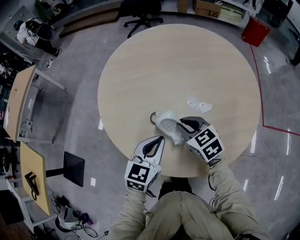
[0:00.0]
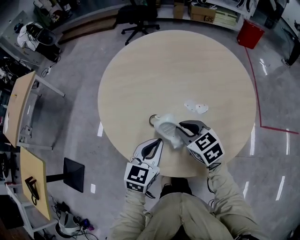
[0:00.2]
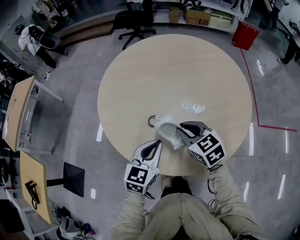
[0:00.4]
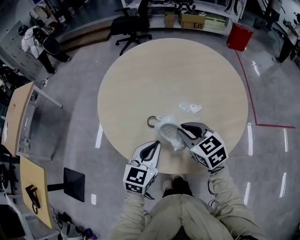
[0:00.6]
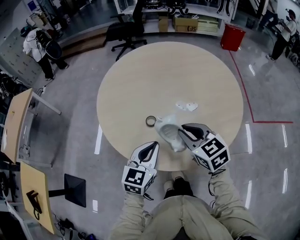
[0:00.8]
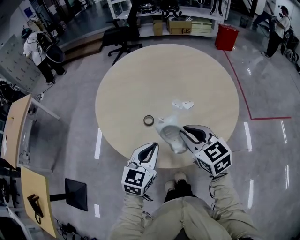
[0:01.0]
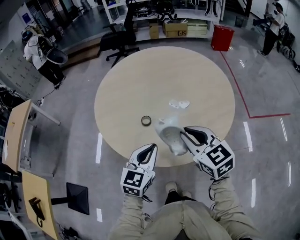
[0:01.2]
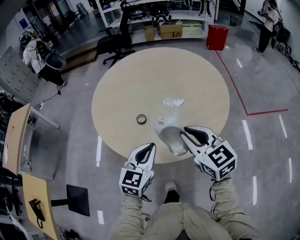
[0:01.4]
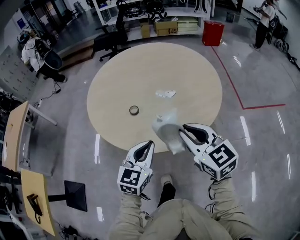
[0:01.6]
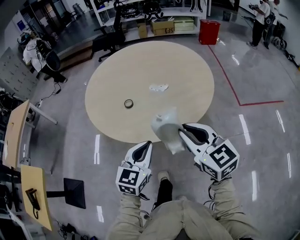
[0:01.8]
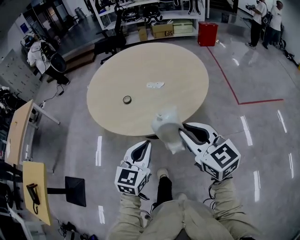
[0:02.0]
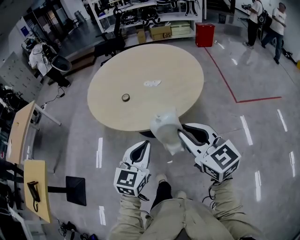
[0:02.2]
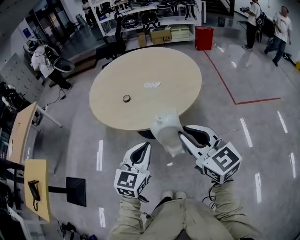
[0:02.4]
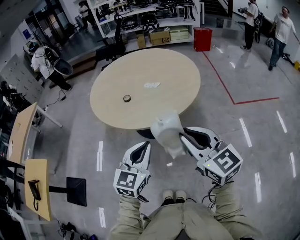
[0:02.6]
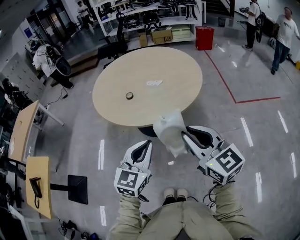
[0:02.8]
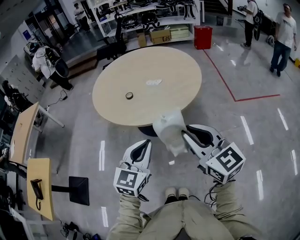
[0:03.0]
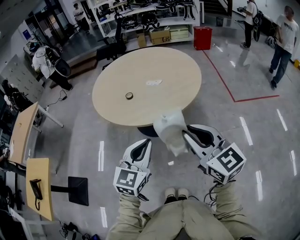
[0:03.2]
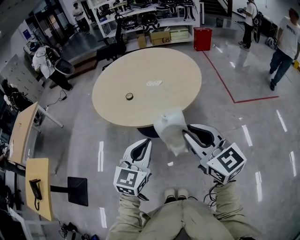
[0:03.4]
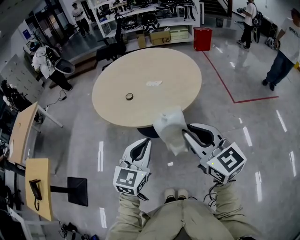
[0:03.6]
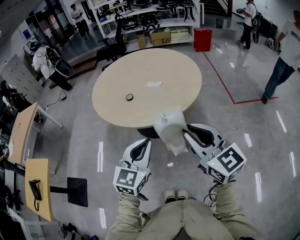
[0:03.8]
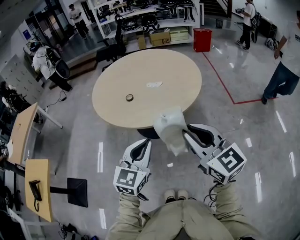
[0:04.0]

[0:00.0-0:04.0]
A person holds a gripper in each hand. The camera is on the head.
0.0 to 1.4 s: The right gripper shifts some 25 cm backward and upward, and turns by about 30 degrees. Meanwhile the left gripper heads backward and upward, covering roughly 15 cm.
1.4 to 2.6 s: The grippers both shift backward by approximately 25 cm.
2.6 to 4.0 s: There are only small adjustments of the grippers.

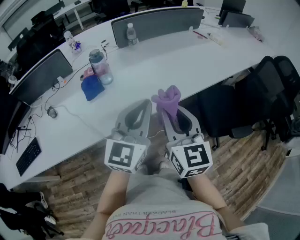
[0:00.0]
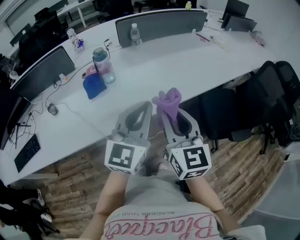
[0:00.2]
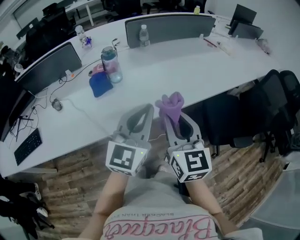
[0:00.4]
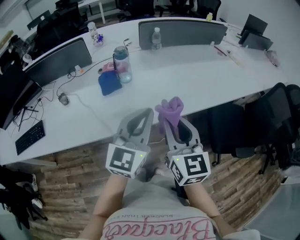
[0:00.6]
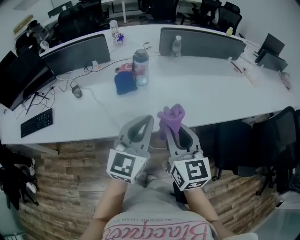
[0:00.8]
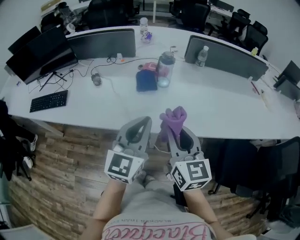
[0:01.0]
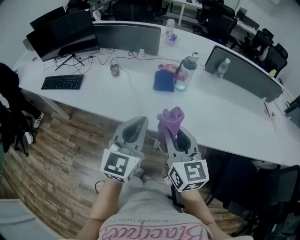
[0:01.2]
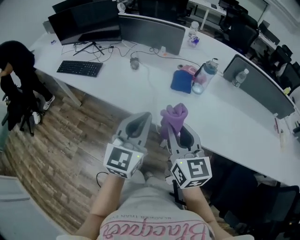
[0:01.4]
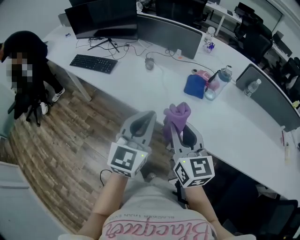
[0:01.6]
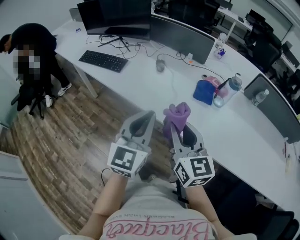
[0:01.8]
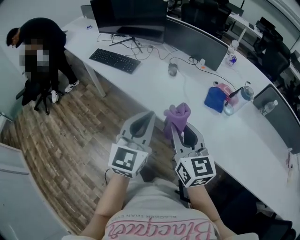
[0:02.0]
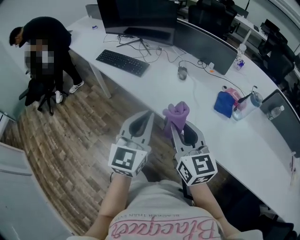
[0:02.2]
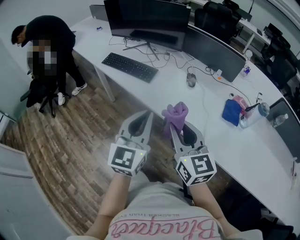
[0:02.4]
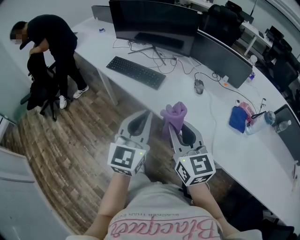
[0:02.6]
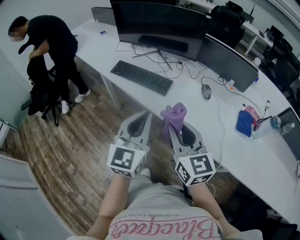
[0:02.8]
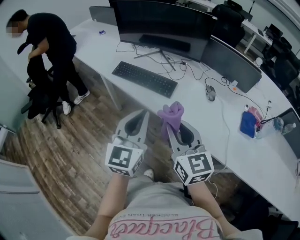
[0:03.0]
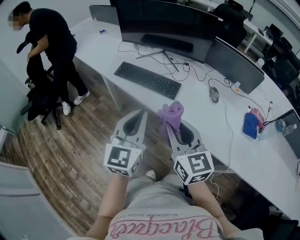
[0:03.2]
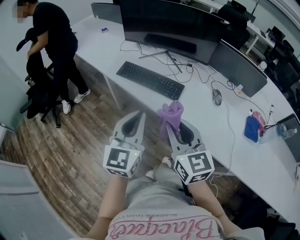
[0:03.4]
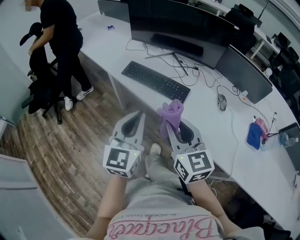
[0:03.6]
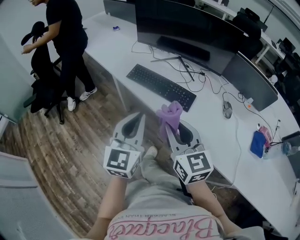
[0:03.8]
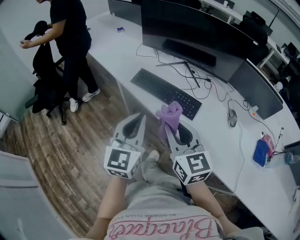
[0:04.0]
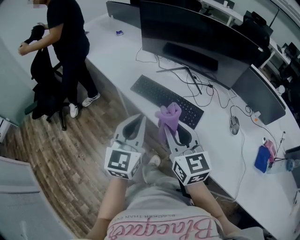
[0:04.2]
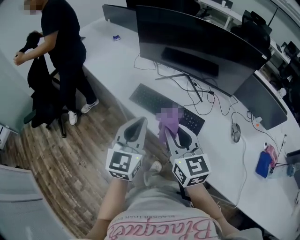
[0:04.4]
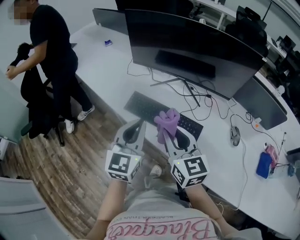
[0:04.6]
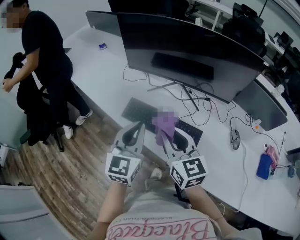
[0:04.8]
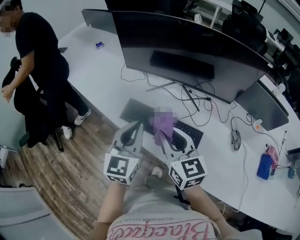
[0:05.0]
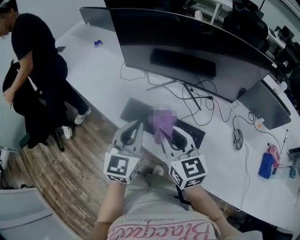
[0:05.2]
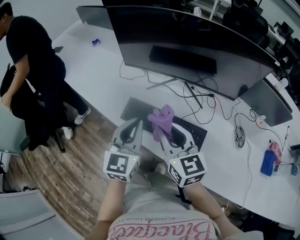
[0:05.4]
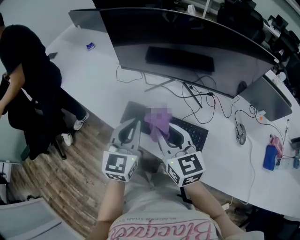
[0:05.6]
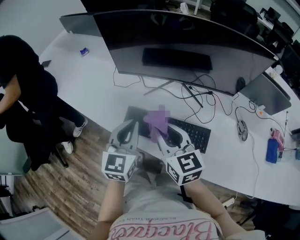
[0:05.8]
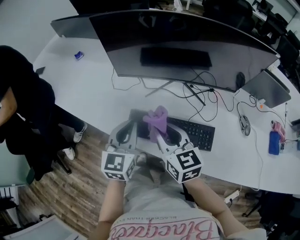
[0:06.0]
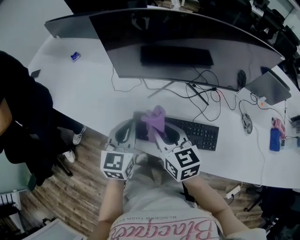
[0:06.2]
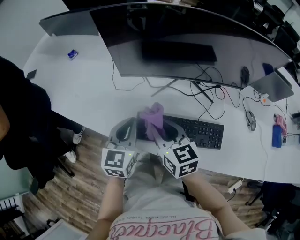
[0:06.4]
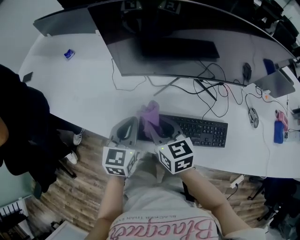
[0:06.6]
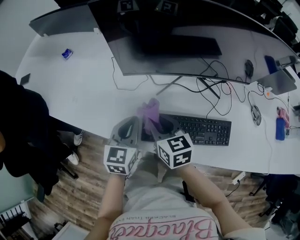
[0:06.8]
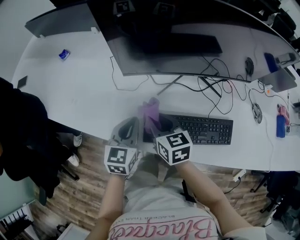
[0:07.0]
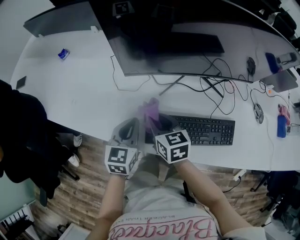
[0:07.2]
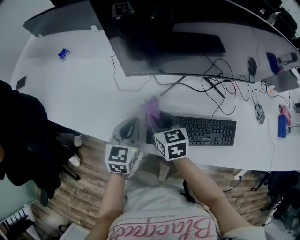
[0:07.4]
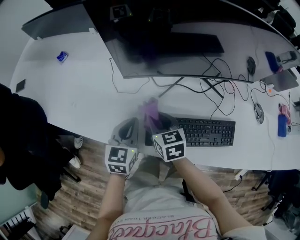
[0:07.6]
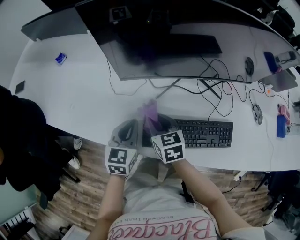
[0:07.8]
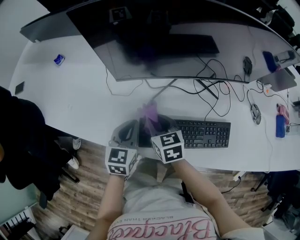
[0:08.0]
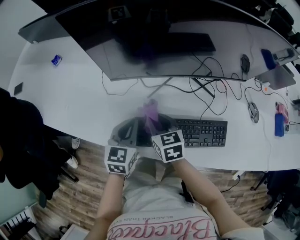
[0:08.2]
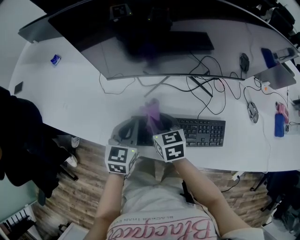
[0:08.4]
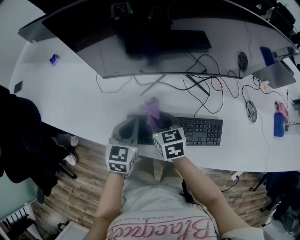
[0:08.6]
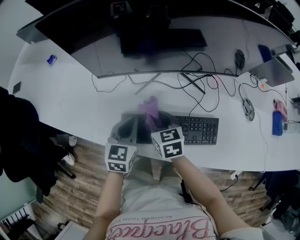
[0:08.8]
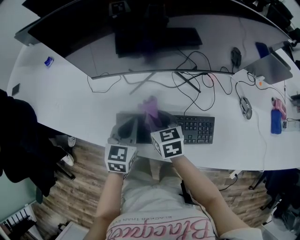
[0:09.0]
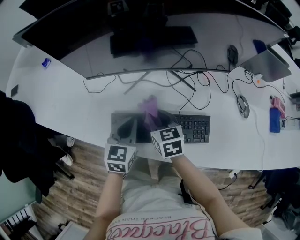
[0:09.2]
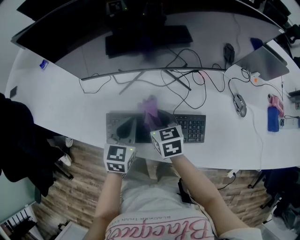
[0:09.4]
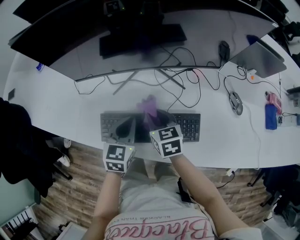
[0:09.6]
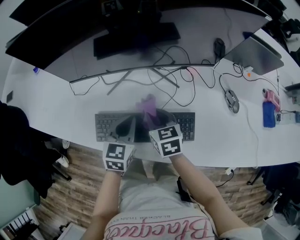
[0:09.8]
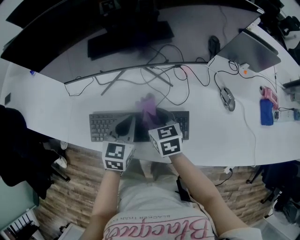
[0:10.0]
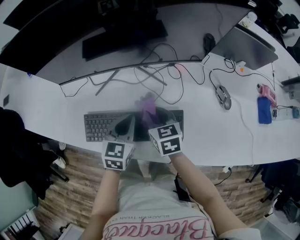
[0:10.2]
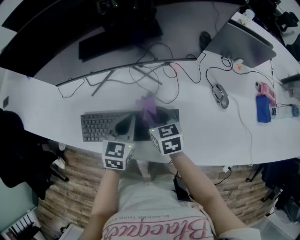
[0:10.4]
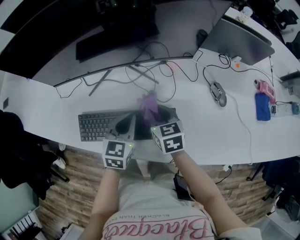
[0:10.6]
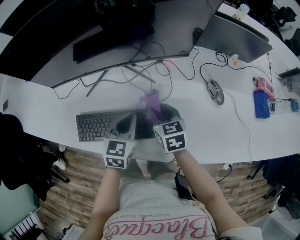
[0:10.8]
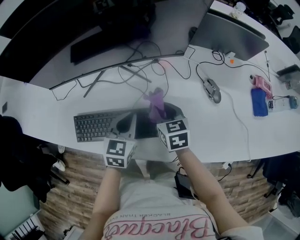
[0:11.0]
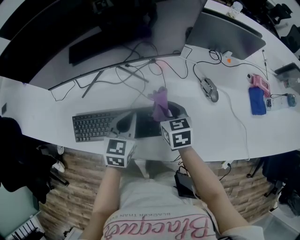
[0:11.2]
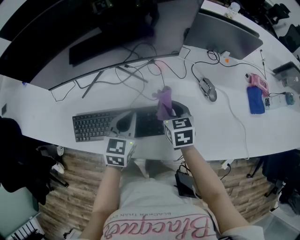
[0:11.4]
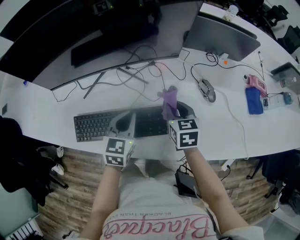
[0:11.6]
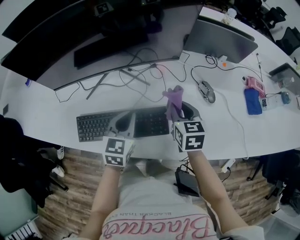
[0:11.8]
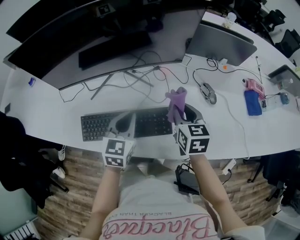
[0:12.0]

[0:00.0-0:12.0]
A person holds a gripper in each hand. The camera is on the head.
0.0 to 1.6 s: The left gripper shifts by approximately 30 cm, and changes its angle by roughly 50 degrees. The right gripper shifts by some 30 cm, and changes its angle by some 50 degrees.
1.6 to 3.0 s: The two grippers travel together, to the left and forward, roughly 40 cm.
3.0 to 4.4 s: The two grippers go roughly 25 cm forward and to the left.
4.4 to 6.0 s: The grippers both shift forward by roughly 20 cm.
6.0 to 7.6 s: Both grippers travel together downward, forward and to the left, roughly 20 cm. The right gripper swivels about 20 degrees.
7.6 to 9.0 s: The grippers both shift to the right by roughly 15 cm.
9.0 to 10.4 s: Both grippers move to the right, roughly 15 cm.
10.4 to 12.0 s: The left gripper heads upward, covering roughly 5 cm; the right gripper goes approximately 15 cm to the right and upward.

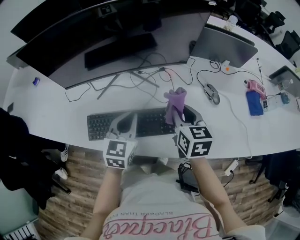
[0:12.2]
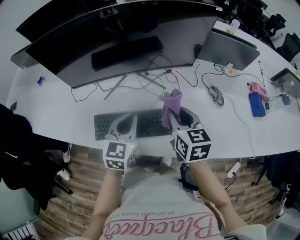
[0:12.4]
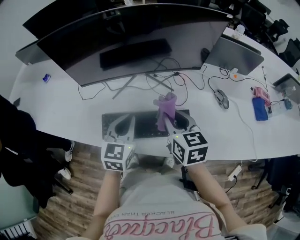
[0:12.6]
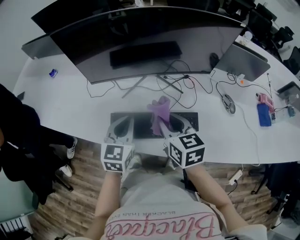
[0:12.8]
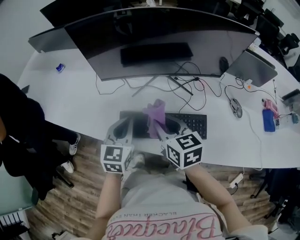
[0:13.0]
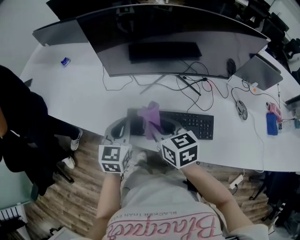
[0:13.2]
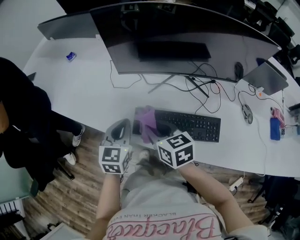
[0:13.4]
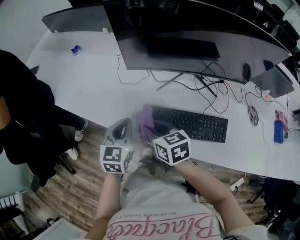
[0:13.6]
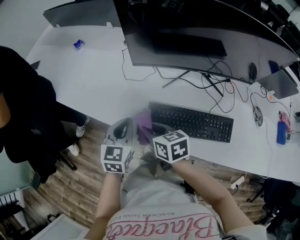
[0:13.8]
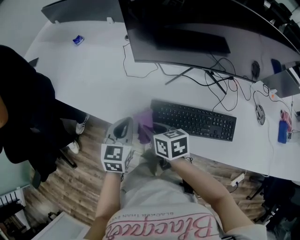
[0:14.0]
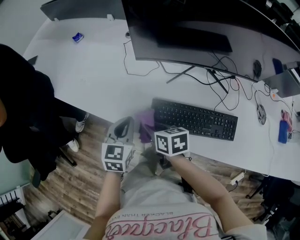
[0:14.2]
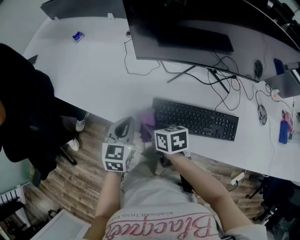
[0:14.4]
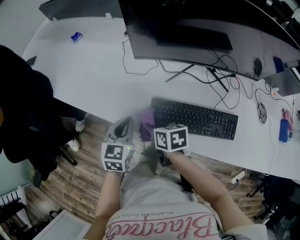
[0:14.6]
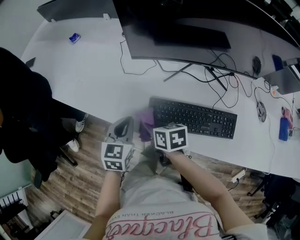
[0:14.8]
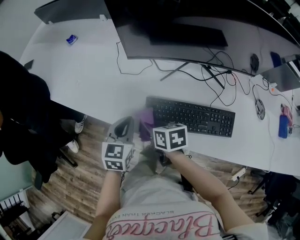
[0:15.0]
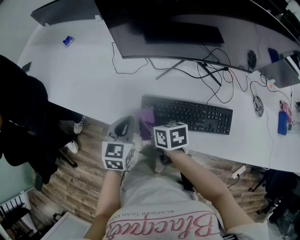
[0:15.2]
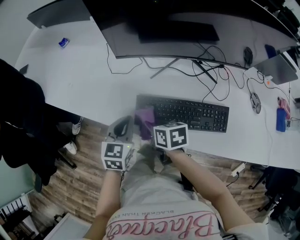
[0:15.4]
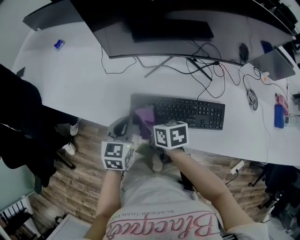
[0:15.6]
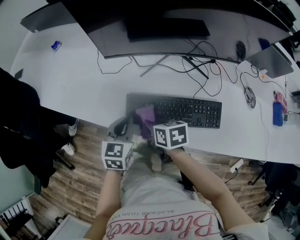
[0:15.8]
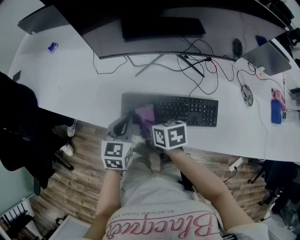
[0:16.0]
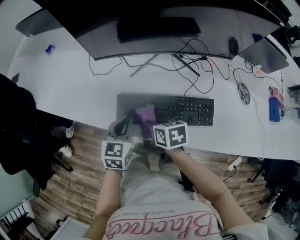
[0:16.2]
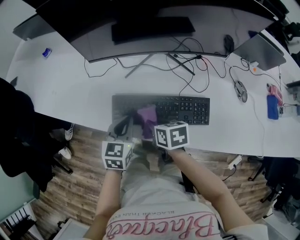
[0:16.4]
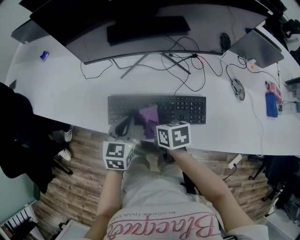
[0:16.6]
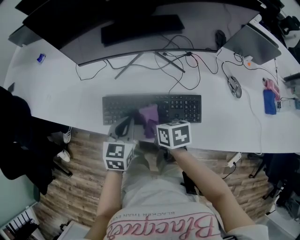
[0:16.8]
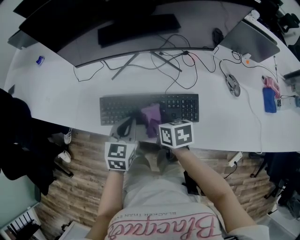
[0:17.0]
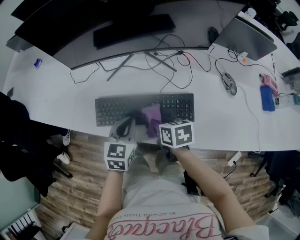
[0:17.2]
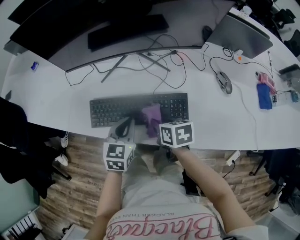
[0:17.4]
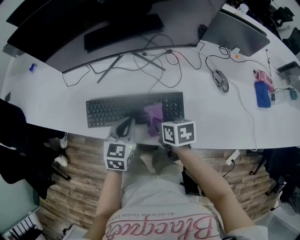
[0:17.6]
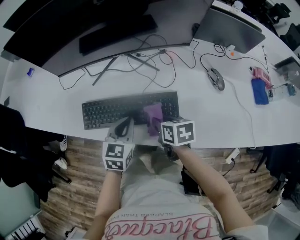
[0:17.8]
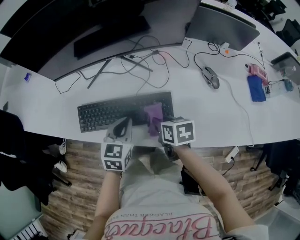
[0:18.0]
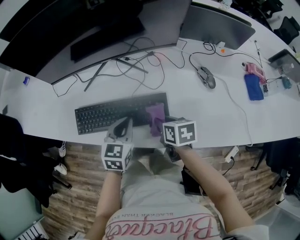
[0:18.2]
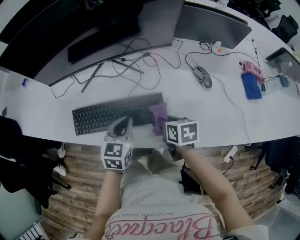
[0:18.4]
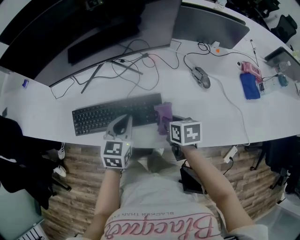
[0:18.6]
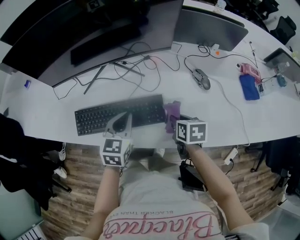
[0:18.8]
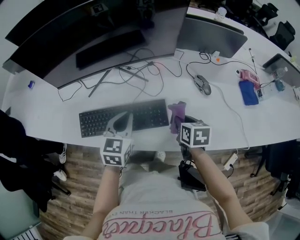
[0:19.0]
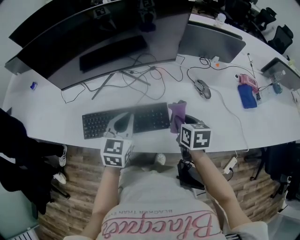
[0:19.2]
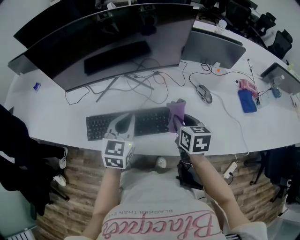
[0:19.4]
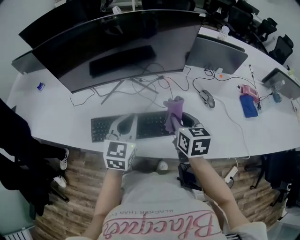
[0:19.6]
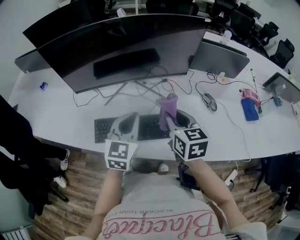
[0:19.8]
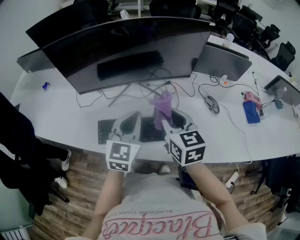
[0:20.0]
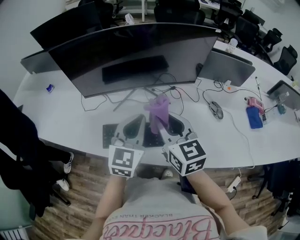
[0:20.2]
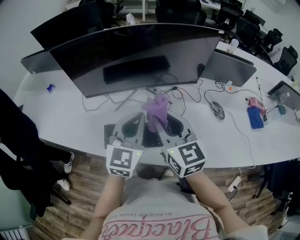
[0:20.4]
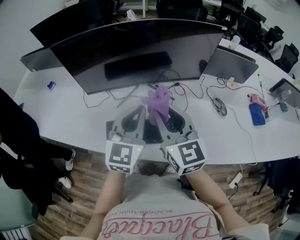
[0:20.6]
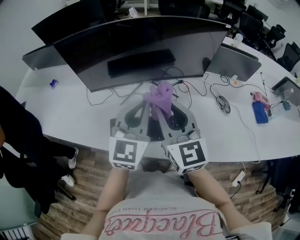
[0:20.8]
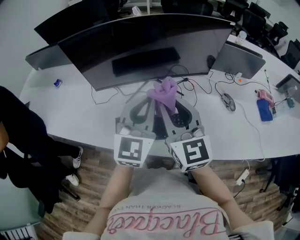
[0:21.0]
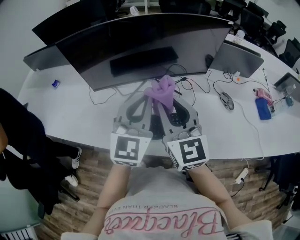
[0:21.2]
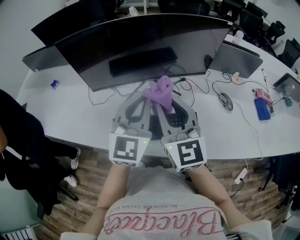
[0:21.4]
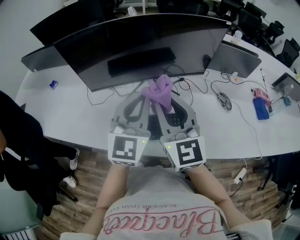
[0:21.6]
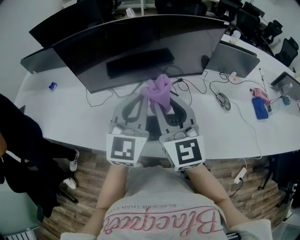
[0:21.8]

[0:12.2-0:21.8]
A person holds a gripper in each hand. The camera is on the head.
12.2 to 13.8 s: The left gripper moves some 35 cm, and changes its angle by some 20 degrees, while the right gripper shifts by approximately 40 cm, and rotates approximately 40 degrees.
13.8 to 15.4 s: The right gripper shifts approximately 10 cm downward and to the right. The left gripper moves roughly 5 cm.
15.4 to 17.0 s: The two grippers go approximately 15 cm to the right.
17.0 to 18.6 s: The grippers both shift to the right by approximately 20 cm.
18.6 to 20.2 s: The right gripper goes roughly 30 cm upward and to the left, and angles its fingers upward, by about 40 degrees. Meanwhile the left gripper heads upward and to the left, covering approximately 20 cm, and swivels about 20 degrees.
20.2 to 21.8 s: Both grippers move upward, roughly 5 cm. The right gripper turns by some 20 degrees.
